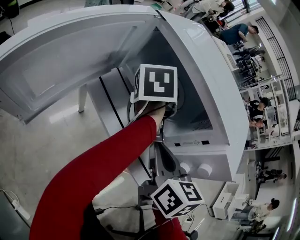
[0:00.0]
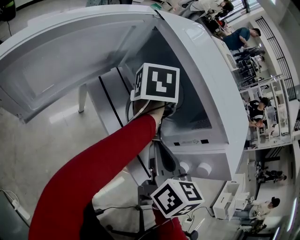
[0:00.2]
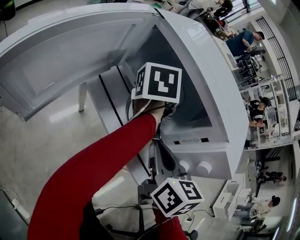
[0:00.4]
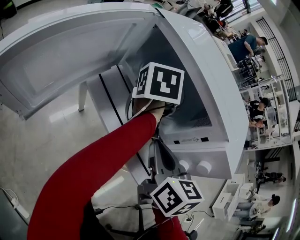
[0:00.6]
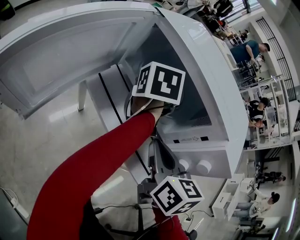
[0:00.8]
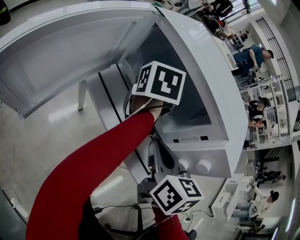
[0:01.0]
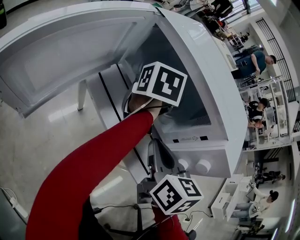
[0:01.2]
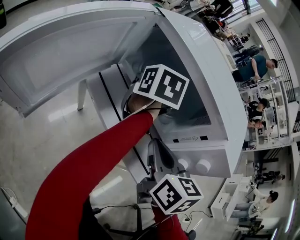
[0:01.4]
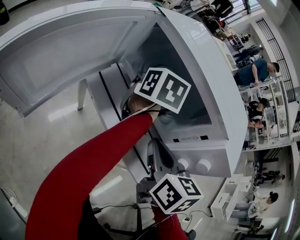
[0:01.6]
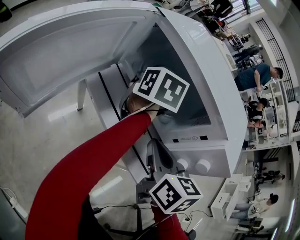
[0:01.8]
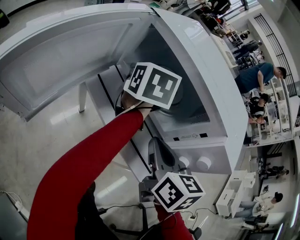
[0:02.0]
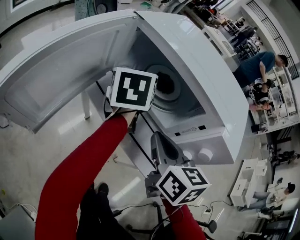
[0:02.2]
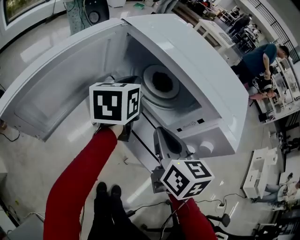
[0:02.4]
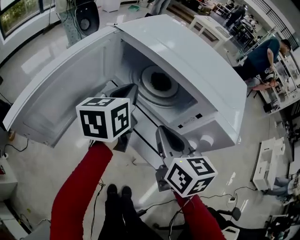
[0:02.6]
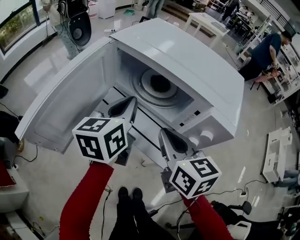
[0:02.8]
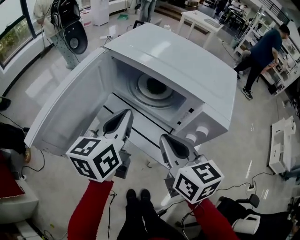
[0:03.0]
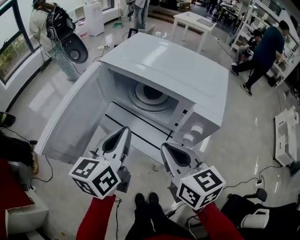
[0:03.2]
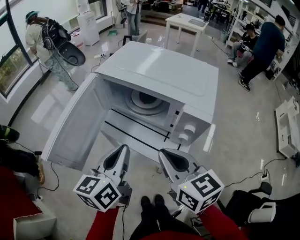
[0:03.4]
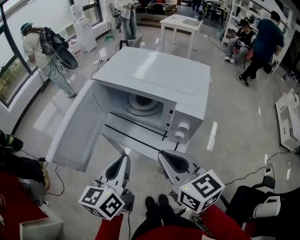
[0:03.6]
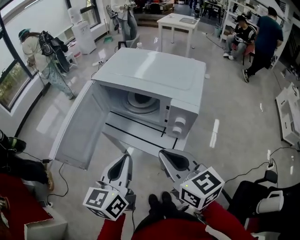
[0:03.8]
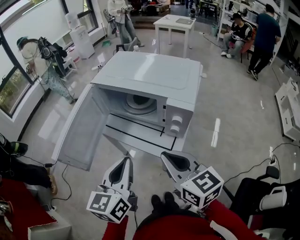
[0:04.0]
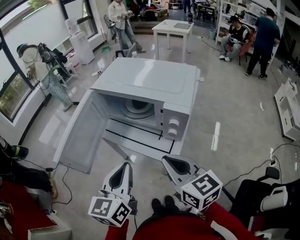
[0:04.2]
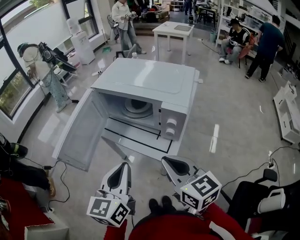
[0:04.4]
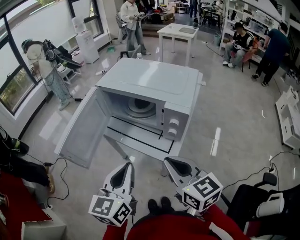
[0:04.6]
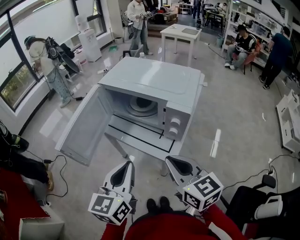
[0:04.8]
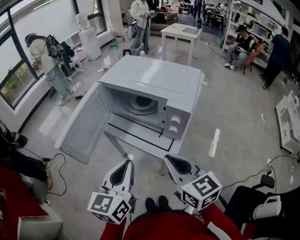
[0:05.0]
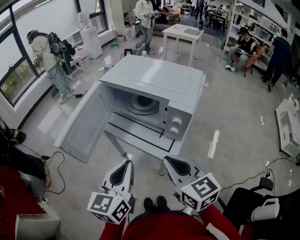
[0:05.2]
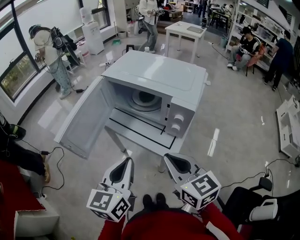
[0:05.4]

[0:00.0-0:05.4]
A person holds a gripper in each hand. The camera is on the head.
0:00.0 to 0:01.4: The left gripper turns by about 30 degrees.
0:01.4 to 0:02.8: The right gripper moves upward, roughly 5 cm, while the left gripper is displaced backward, upward and to the left by approximately 15 cm, rotates roughly 20 degrees, and closes.
0:02.8 to 0:04.0: The right gripper moves backward and upward, roughly 15 cm. The left gripper moves backward, roughly 20 cm.
0:04.0 to 0:05.4: The grippers move only a little.

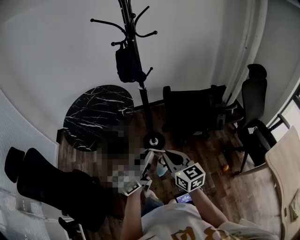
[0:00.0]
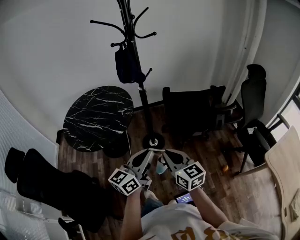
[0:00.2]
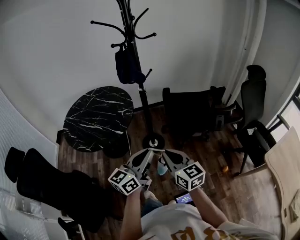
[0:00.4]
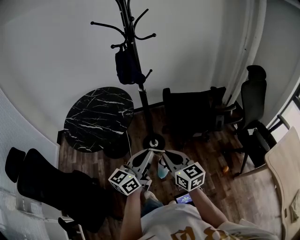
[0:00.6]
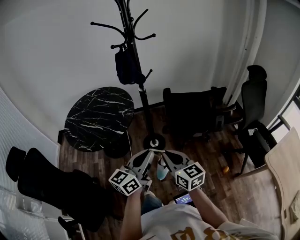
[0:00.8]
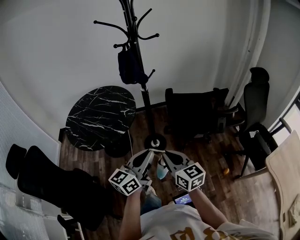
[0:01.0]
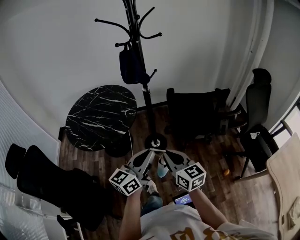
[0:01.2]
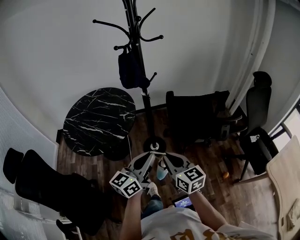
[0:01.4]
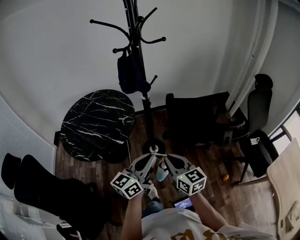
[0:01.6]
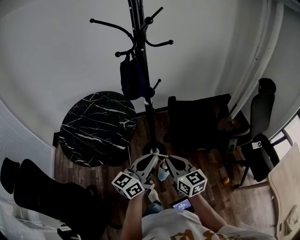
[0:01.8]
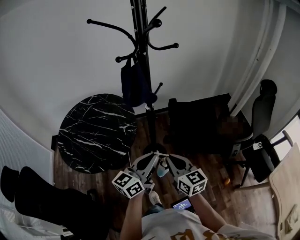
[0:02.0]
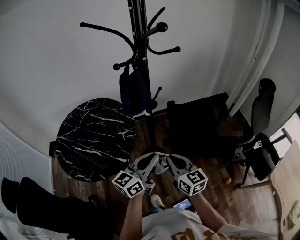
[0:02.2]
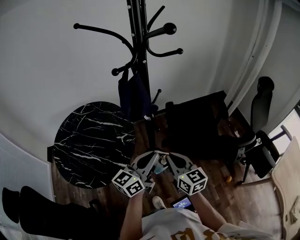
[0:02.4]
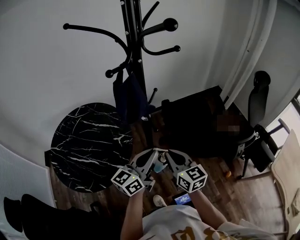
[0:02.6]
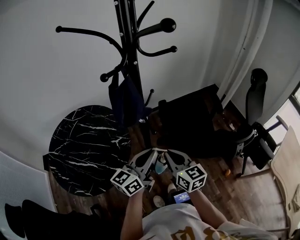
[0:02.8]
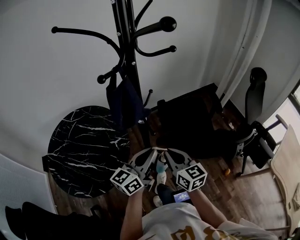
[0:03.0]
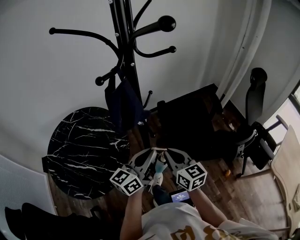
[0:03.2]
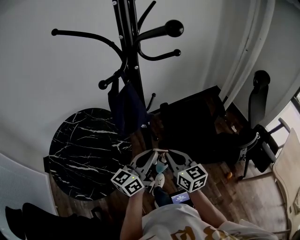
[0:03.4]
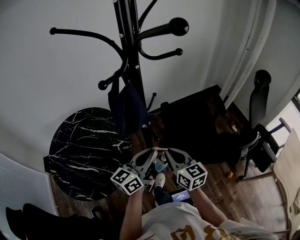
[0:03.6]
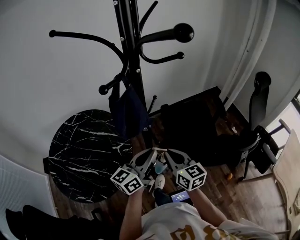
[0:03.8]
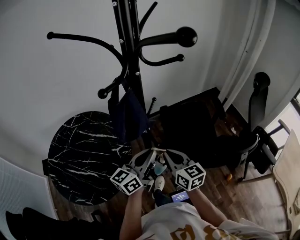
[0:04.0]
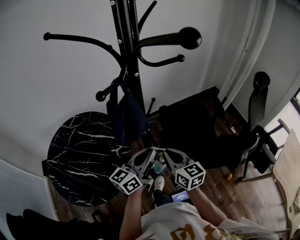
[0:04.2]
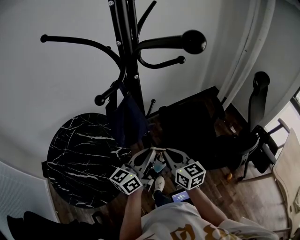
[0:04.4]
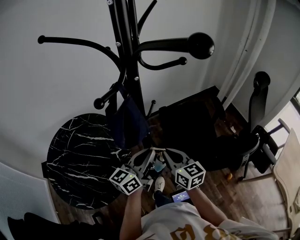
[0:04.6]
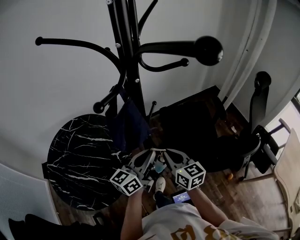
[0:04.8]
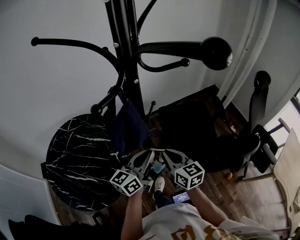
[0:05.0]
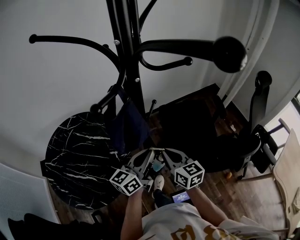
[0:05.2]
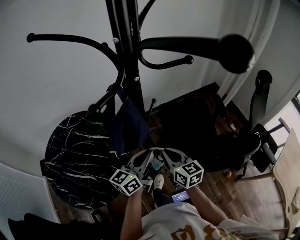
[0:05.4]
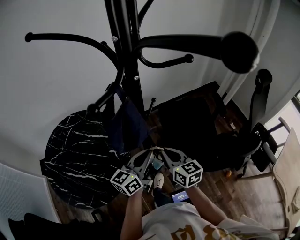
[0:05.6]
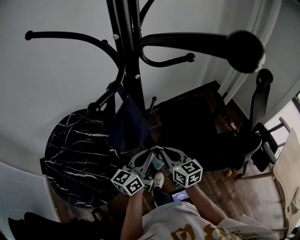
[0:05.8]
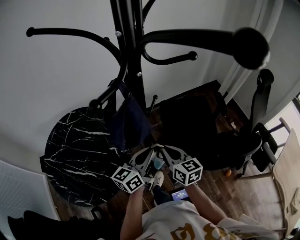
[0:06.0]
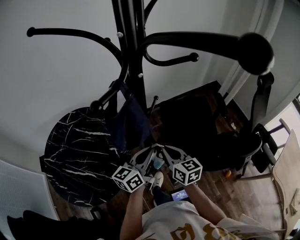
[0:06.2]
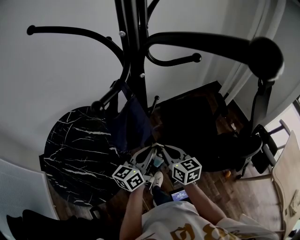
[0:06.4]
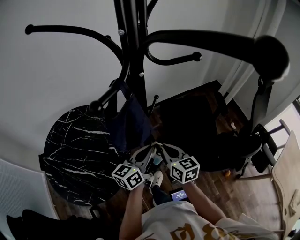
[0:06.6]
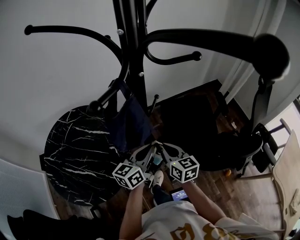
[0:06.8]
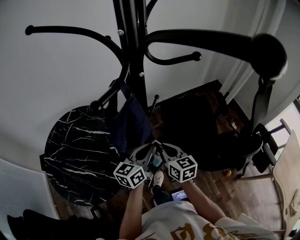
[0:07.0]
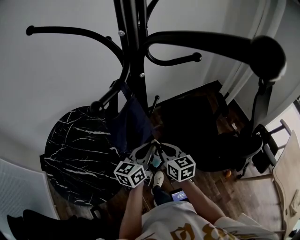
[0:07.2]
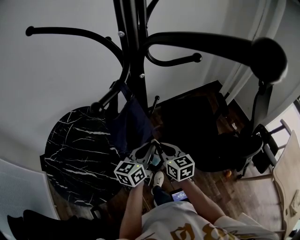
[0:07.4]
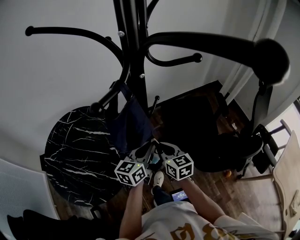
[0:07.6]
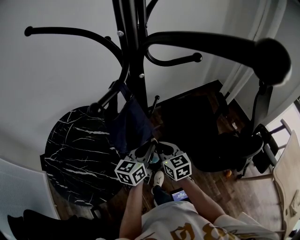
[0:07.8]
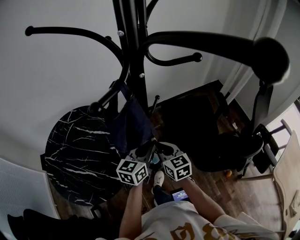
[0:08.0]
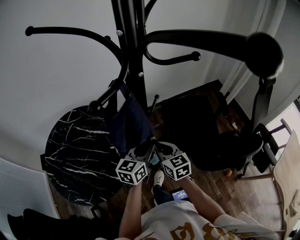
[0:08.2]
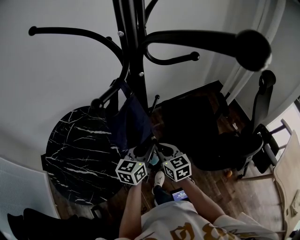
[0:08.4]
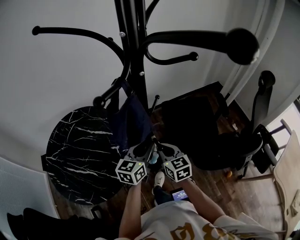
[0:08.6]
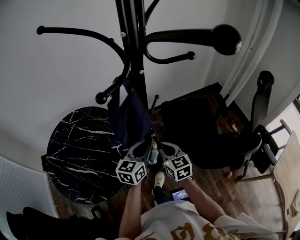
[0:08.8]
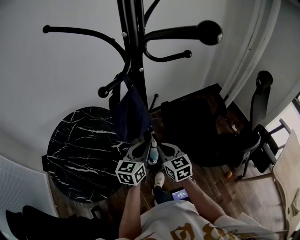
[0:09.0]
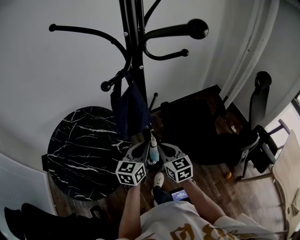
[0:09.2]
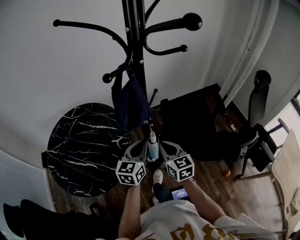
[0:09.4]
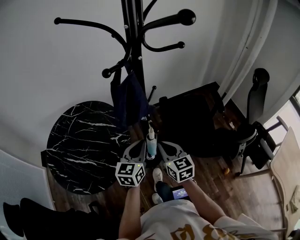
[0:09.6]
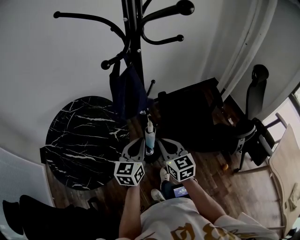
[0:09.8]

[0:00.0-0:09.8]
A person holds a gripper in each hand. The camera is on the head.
0:00.0 to 0:01.4: The grippers make only small movements.
0:01.4 to 0:02.8: The grippers both shift forward by approximately 25 cm.
0:02.8 to 0:04.2: The grippers both shift forward by about 5 cm.
0:04.2 to 0:05.6: The right gripper moves approximately 5 cm.
0:05.6 to 0:08.4: There are only small adjustments of the grippers.
0:08.4 to 0:09.8: The two grippers go about 10 cm backward.

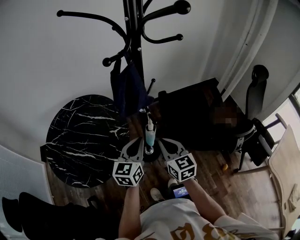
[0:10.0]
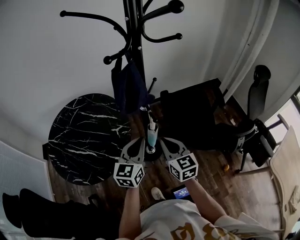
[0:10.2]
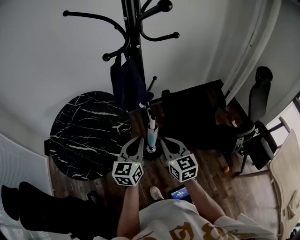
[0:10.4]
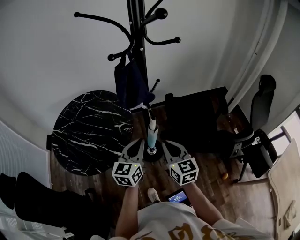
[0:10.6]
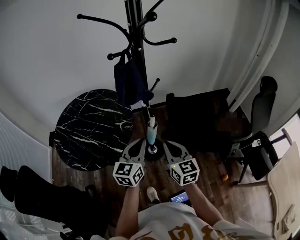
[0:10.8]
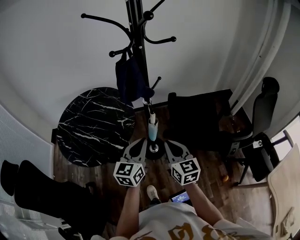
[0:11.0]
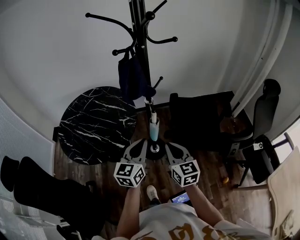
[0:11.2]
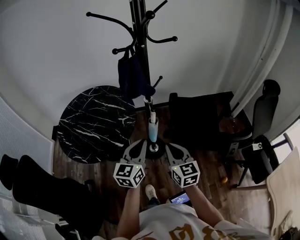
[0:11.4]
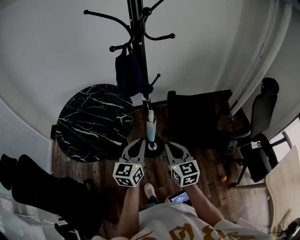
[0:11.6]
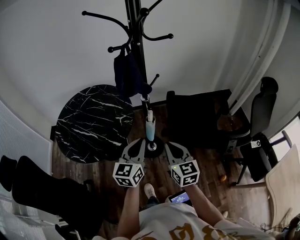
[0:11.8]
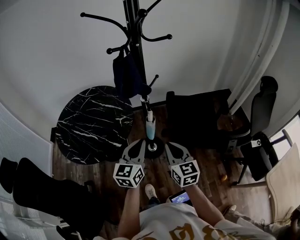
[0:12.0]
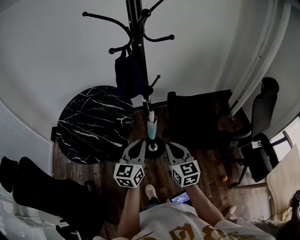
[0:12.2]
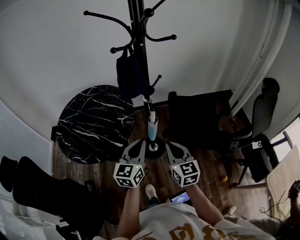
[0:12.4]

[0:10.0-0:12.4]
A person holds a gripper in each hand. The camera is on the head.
0:10.0 to 0:11.2: The right gripper travels backward and to the right by roughly 10 cm. Meanwhile the left gripper heads backward, covering approximately 10 cm.
0:11.2 to 0:12.4: The grippers make only small movements.

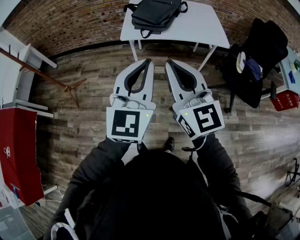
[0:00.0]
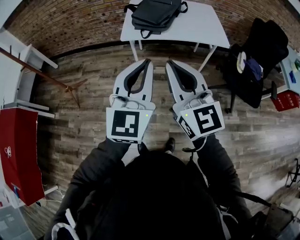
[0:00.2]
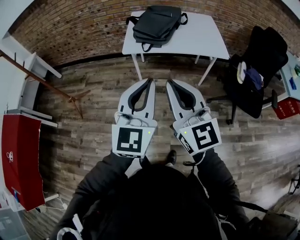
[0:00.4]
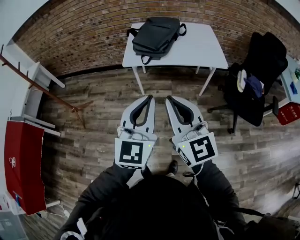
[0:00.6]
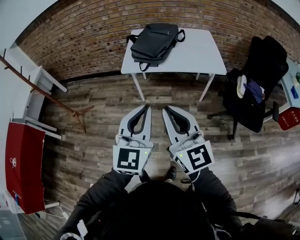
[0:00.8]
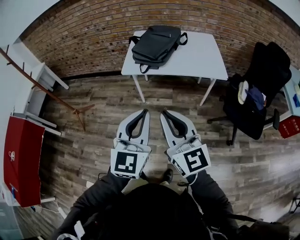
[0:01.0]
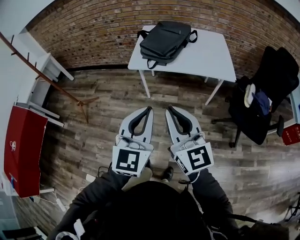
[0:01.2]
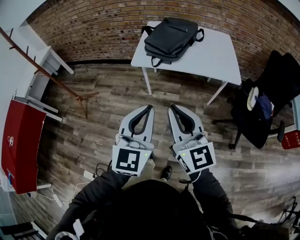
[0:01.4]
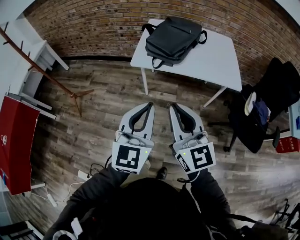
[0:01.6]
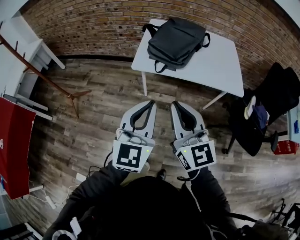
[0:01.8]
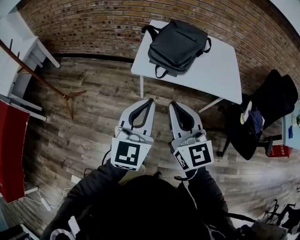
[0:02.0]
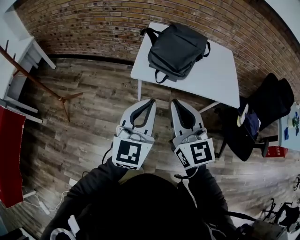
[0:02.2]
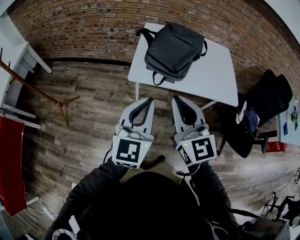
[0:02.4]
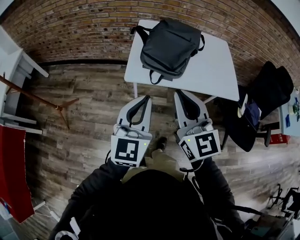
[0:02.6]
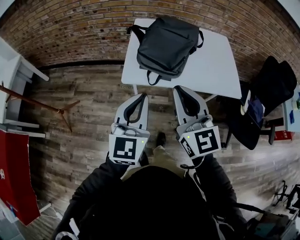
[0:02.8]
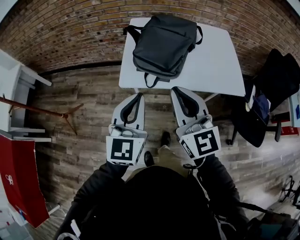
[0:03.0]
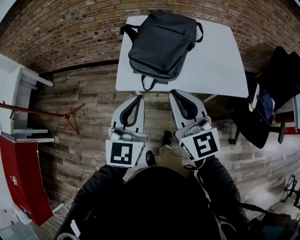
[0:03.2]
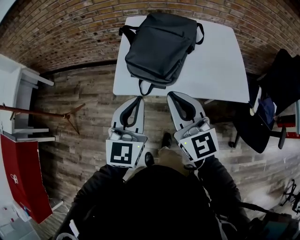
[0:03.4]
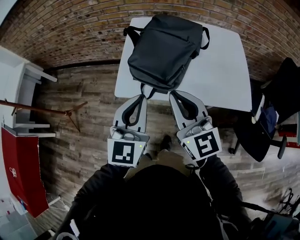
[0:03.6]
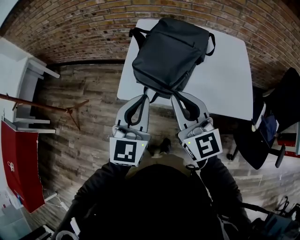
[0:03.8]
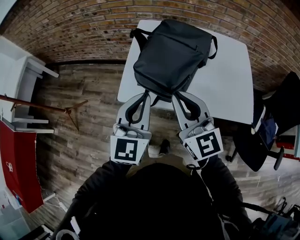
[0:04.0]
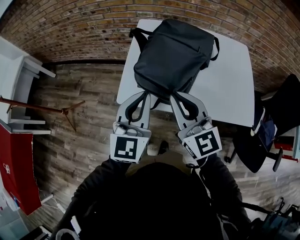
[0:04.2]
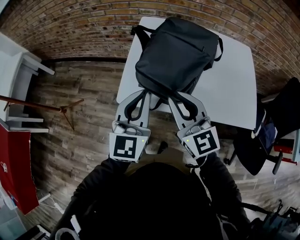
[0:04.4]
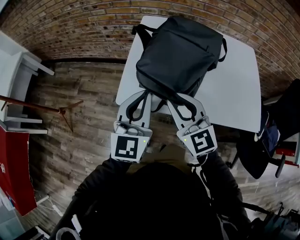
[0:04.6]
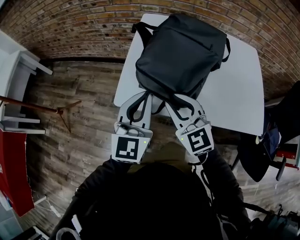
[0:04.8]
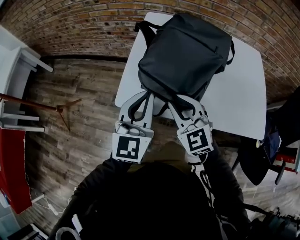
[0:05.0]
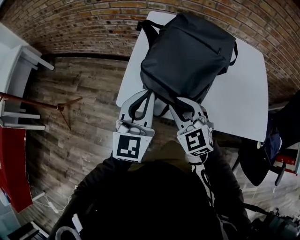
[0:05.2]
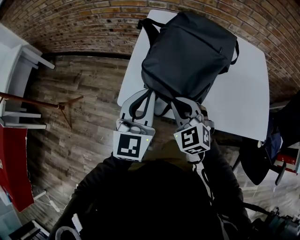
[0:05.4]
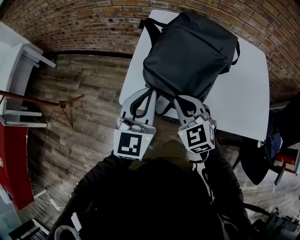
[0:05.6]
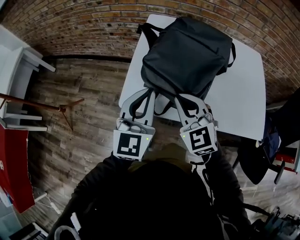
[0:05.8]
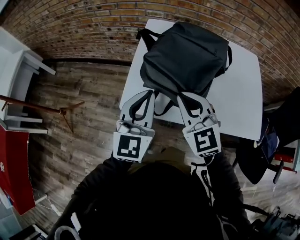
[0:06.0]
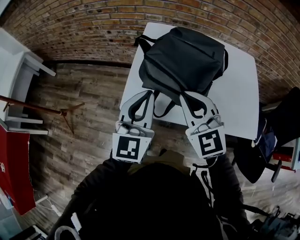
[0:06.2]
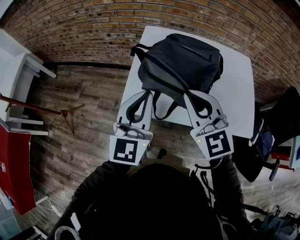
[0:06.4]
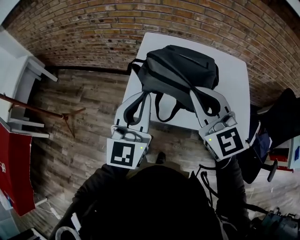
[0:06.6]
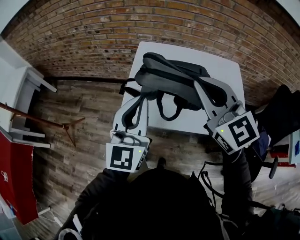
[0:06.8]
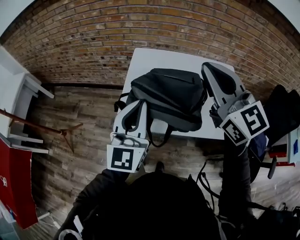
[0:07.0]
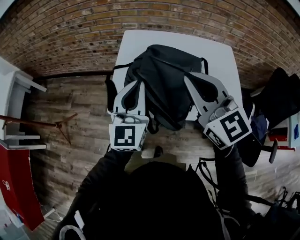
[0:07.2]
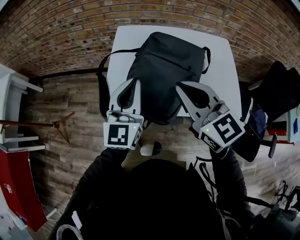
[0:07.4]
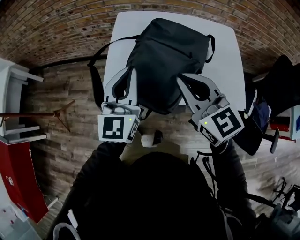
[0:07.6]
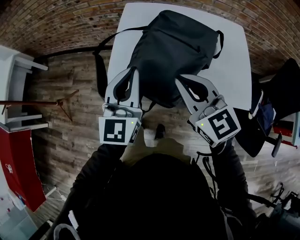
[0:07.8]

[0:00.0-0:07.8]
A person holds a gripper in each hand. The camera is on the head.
0:00.0 to 0:01.6: The two grippers go some 10 cm forward and downward.
0:01.6 to 0:03.2: Both grippers travel together forward, about 25 cm.
0:03.2 to 0:04.6: Both grippers travel together forward and downward, some 15 cm.
0:04.6 to 0:06.2: The right gripper moves upward, approximately 5 cm.
0:06.2 to 0:07.8: The right gripper heads backward and to the right, covering approximately 10 cm, goes upward and returns, about 25 cm each way, and rotates about 20 degrees, while the left gripper goes upward and returns, about 10 cm each way.
